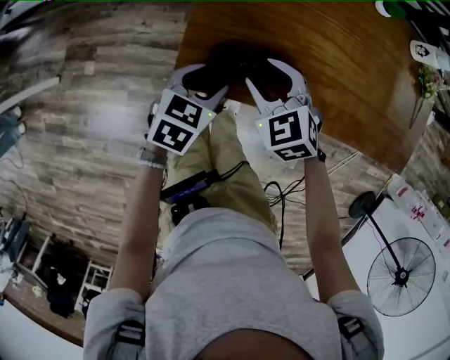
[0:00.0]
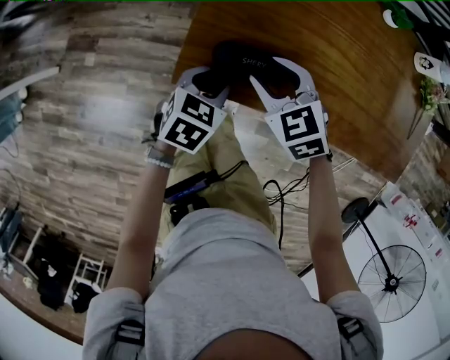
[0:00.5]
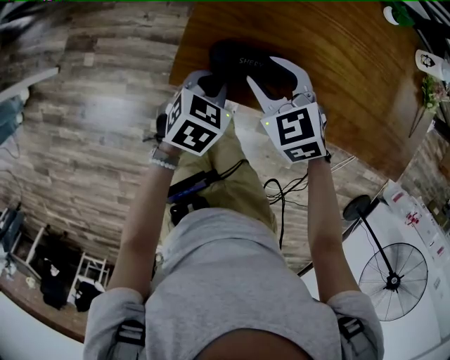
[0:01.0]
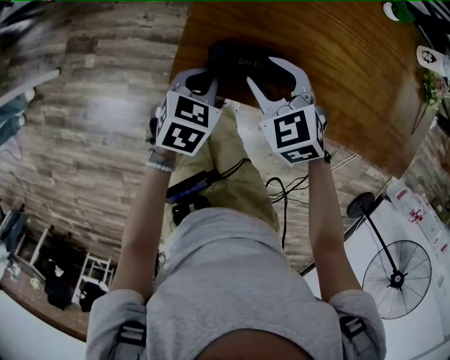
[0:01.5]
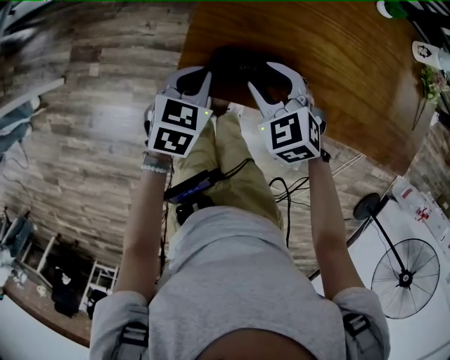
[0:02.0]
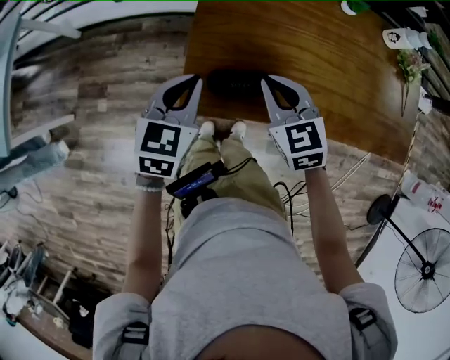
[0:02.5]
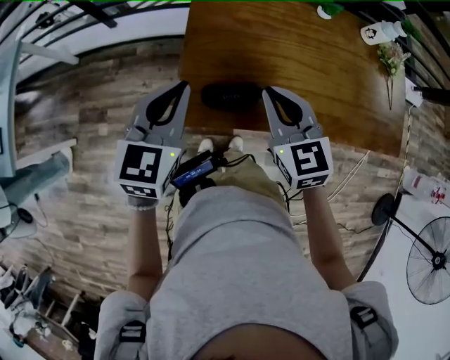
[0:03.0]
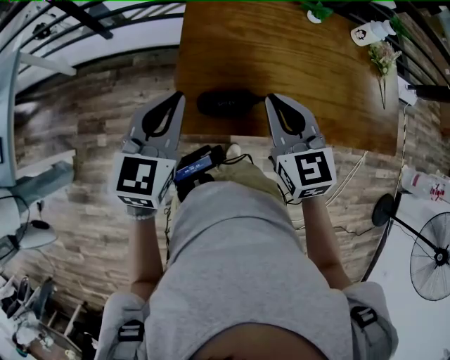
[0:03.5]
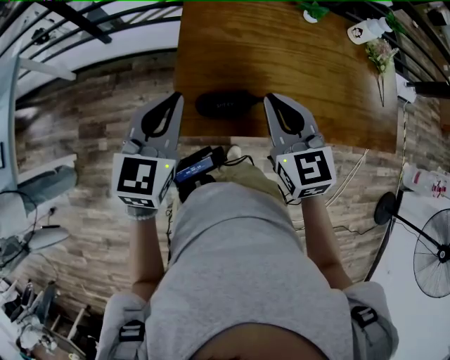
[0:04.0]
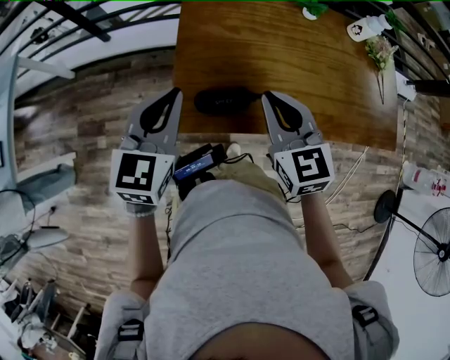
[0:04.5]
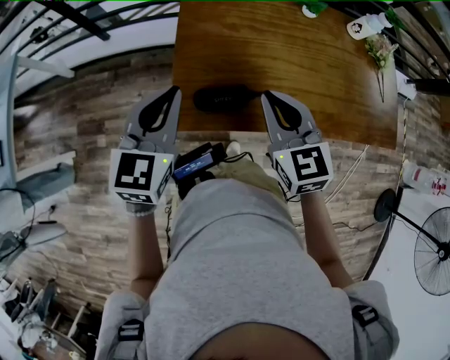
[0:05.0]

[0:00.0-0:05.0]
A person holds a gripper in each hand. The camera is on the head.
0:00.0 to 0:02.5: Both grippers move upward, about 10 cm. The right gripper swivels approximately 20 degrees, and closes its fingers, while the left gripper closes up.
0:02.5 to 0:05.0: The two grippers go roughly 10 cm upward.

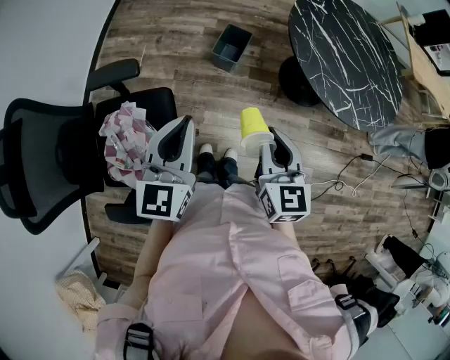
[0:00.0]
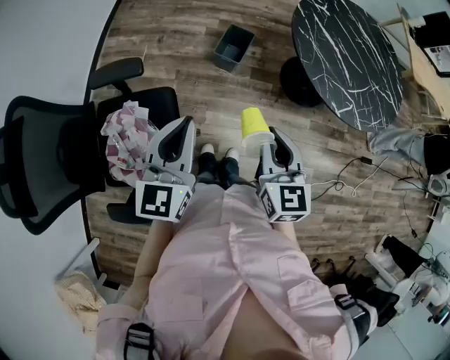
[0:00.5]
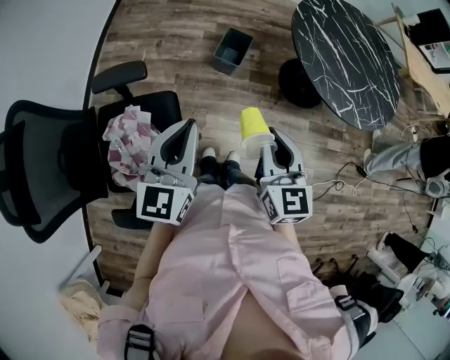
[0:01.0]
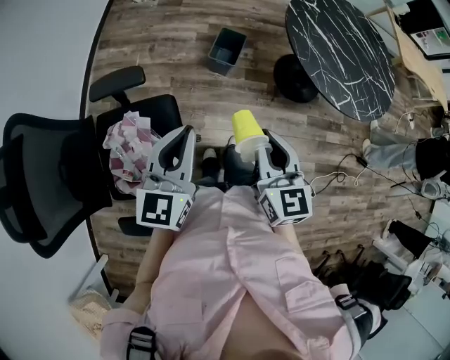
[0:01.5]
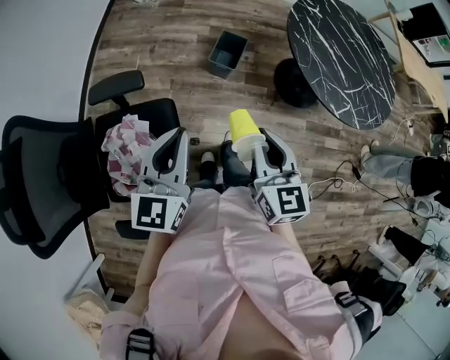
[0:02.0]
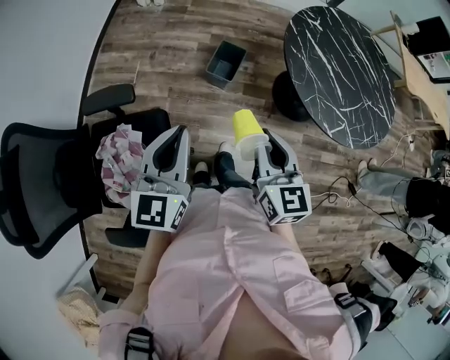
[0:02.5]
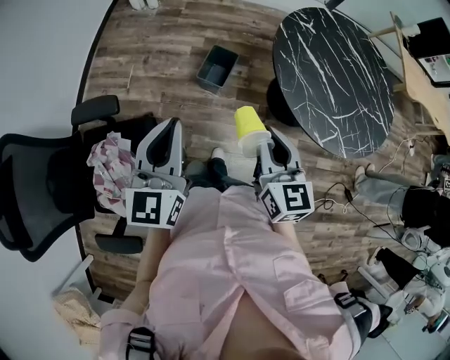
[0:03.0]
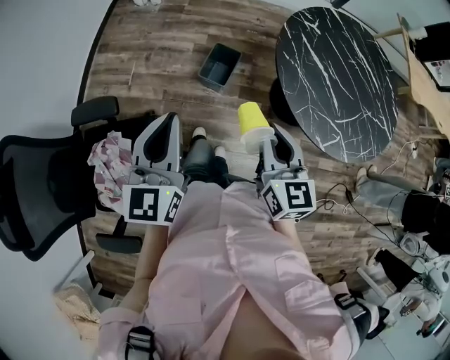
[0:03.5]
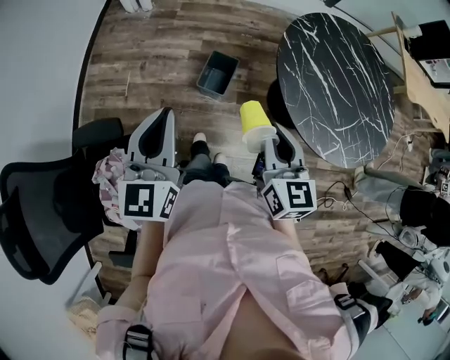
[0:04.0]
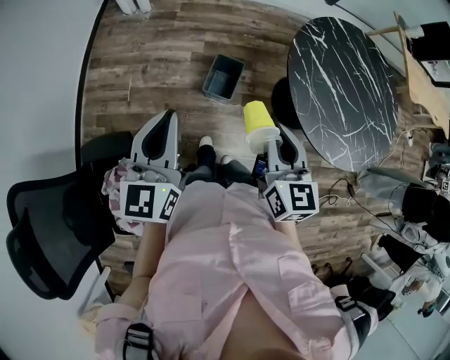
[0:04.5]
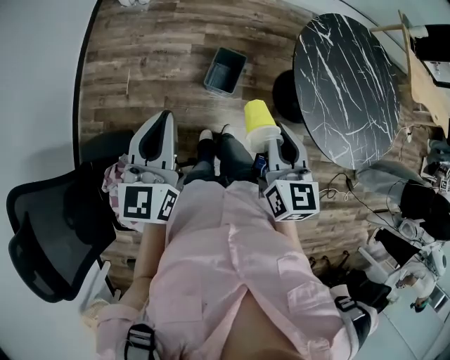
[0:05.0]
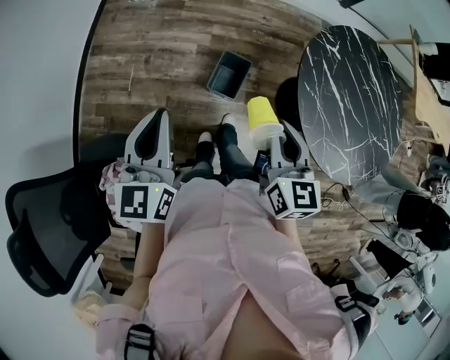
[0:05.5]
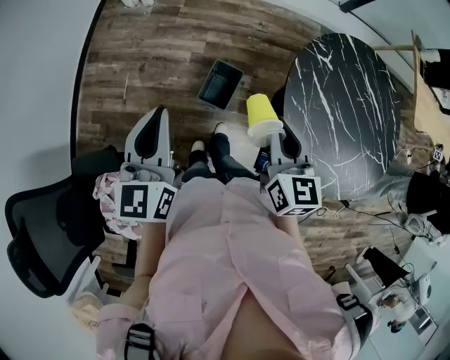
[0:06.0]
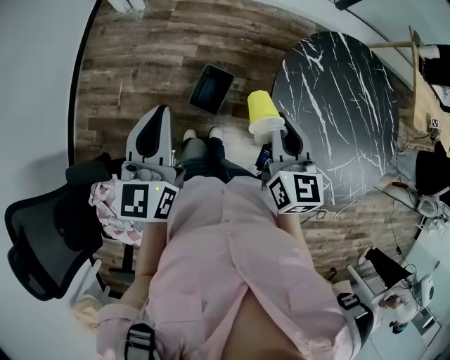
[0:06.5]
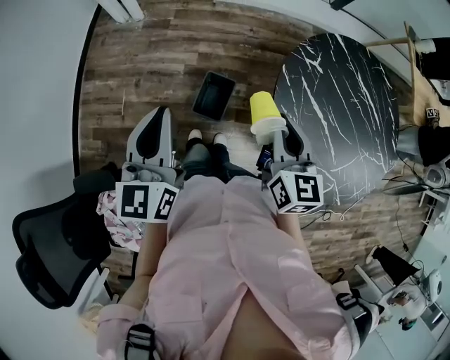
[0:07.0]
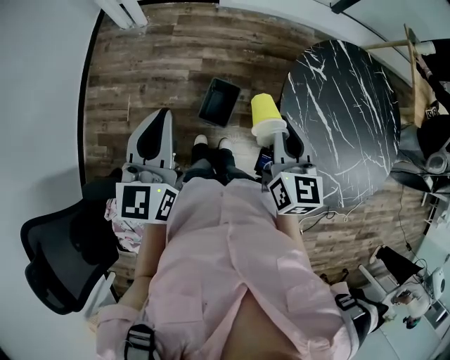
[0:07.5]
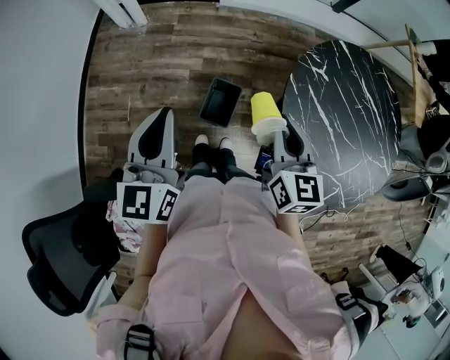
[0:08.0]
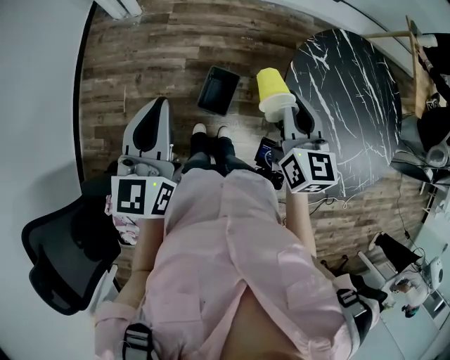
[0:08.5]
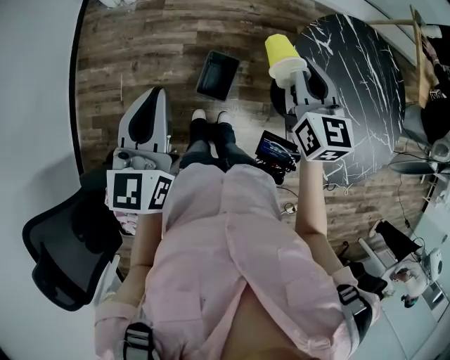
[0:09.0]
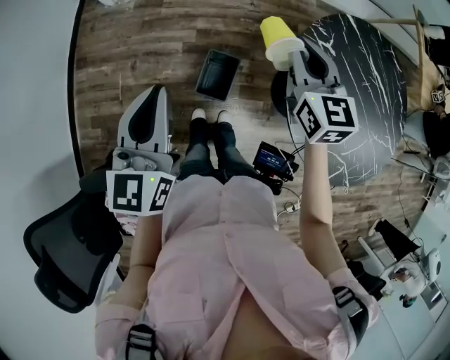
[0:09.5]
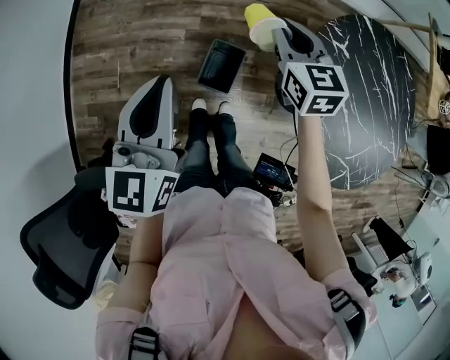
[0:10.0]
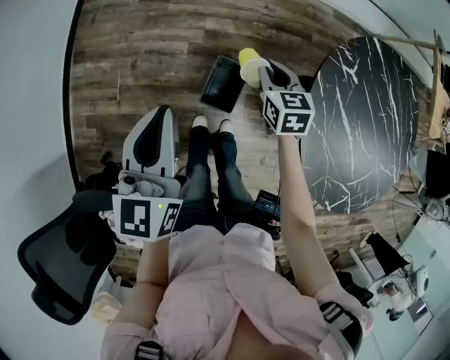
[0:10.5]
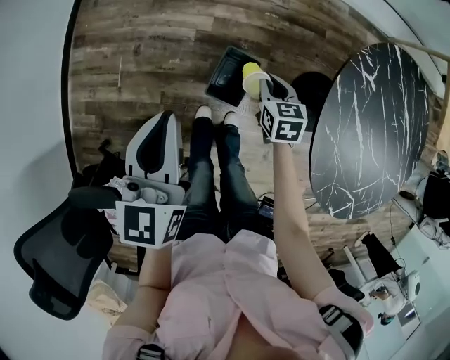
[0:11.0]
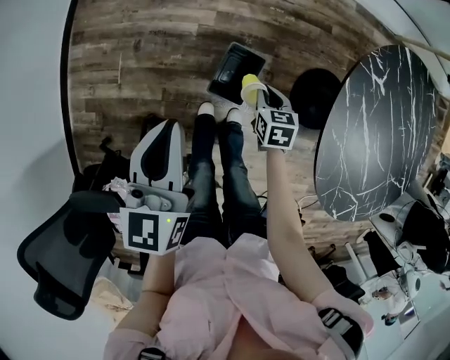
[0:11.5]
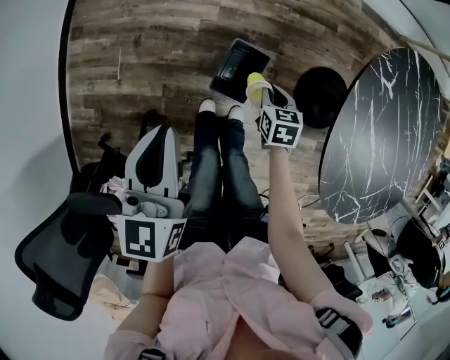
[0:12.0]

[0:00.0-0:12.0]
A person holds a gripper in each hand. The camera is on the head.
0:00.0 to 0:02.0: The two grippers go about 5 cm to the left.
0:02.0 to 0:04.0: The left gripper is displaced forward by about 20 cm, while the right gripper heads forward and to the right, covering some 20 cm.
0:04.0 to 0:06.0: Both grippers move forward, approximately 15 cm.
0:06.0 to 0:08.0: The grippers both shift forward by some 5 cm.
0:08.0 to 0:10.0: The right gripper travels forward by some 20 cm; the left gripper moves approximately 5 cm.
0:10.0 to 0:12.0: The left gripper heads downward, covering roughly 15 cm. The right gripper moves downward, about 35 cm, and swivels roughly 30 degrees.

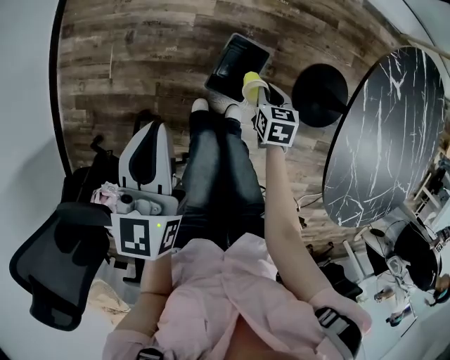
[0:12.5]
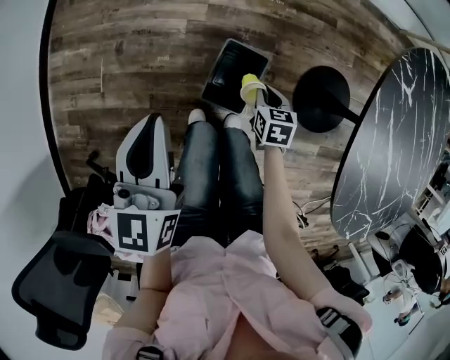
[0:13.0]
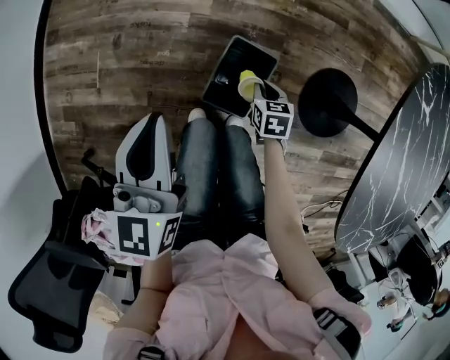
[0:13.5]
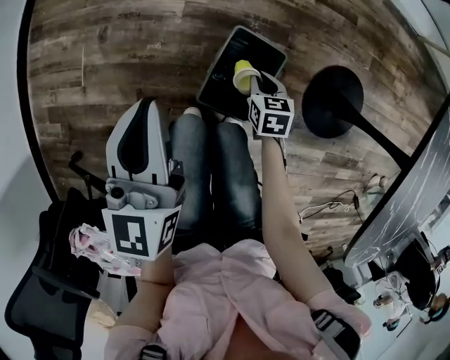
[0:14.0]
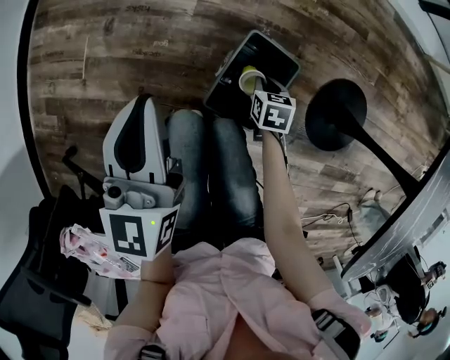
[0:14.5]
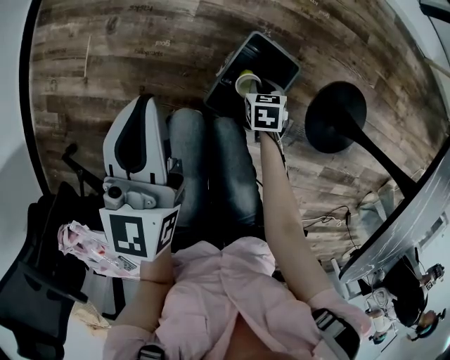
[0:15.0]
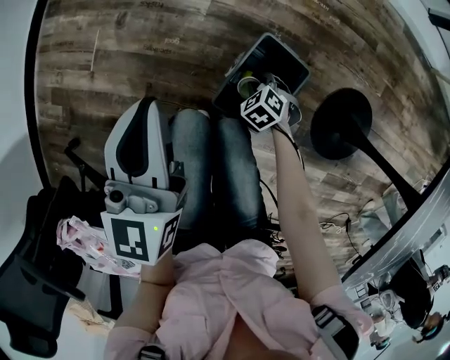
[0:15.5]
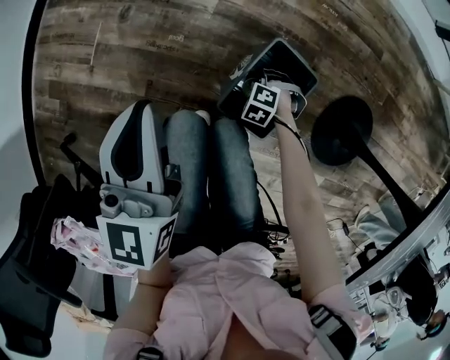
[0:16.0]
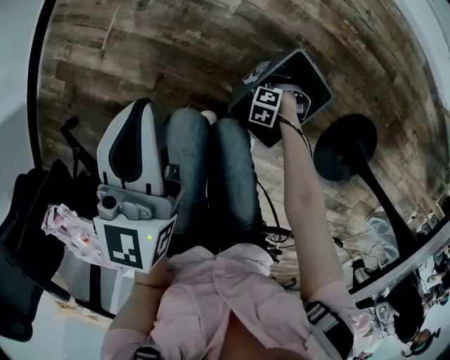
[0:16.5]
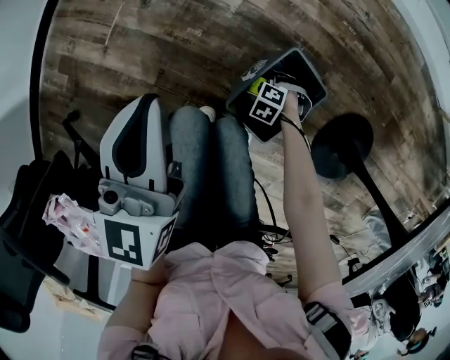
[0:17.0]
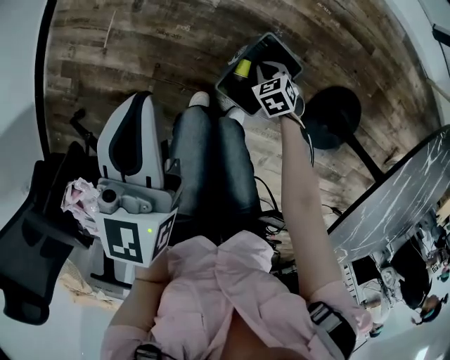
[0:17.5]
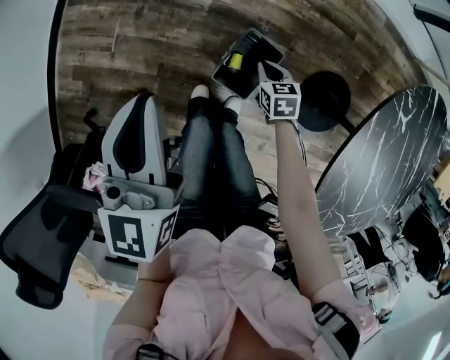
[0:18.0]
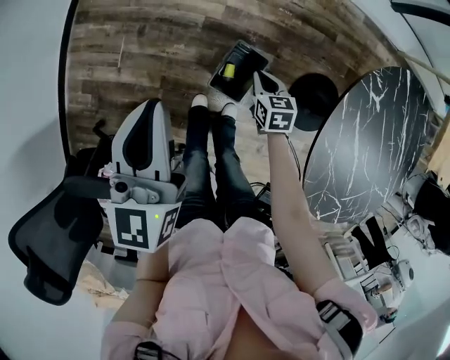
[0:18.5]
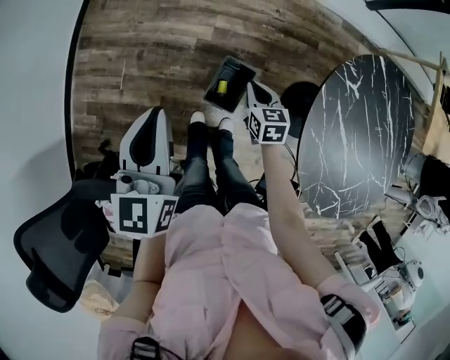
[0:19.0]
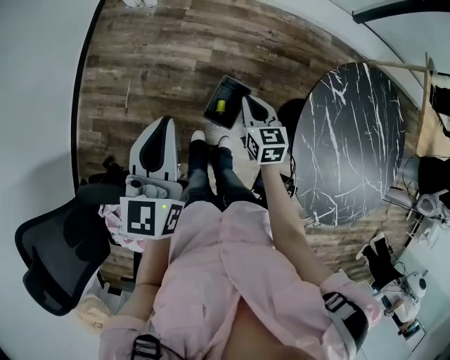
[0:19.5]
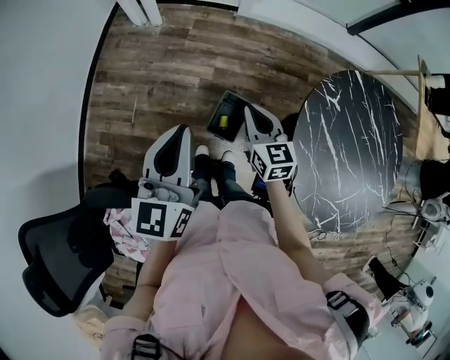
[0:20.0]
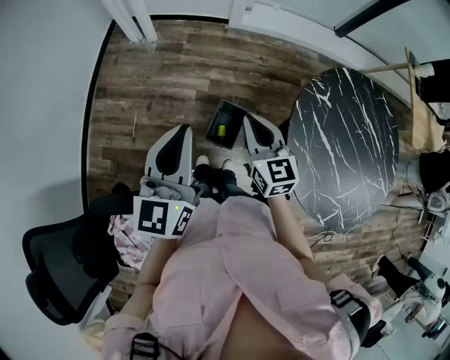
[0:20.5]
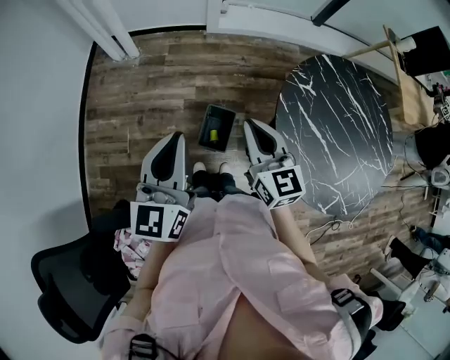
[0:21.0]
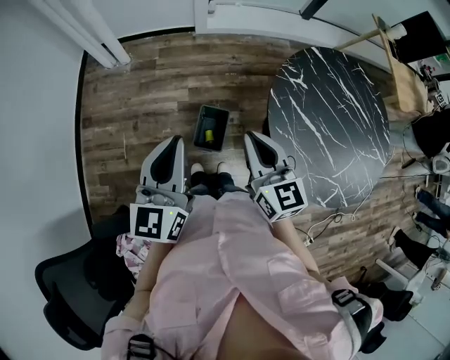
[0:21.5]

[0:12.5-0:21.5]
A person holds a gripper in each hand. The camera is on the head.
0:12.5 to 0:14.5: The right gripper moves downward, about 25 cm. The left gripper moves downward and forward, approximately 25 cm.
0:14.5 to 0:17.0: The right gripper goes some 10 cm downward, twists roughly 90 degrees counterclockwise, seen from behind, and opens its fingers.
0:17.0 to 0:19.5: The right gripper moves upward, about 60 cm, tilts its fingers roughly 50 degrees upward, and closes; the left gripper travels upward by some 40 cm.
0:19.5 to 0:21.5: The left gripper travels to the right by approximately 10 cm, while the right gripper goes approximately 25 cm upward and backward, and rotates approximately 20 degrees.

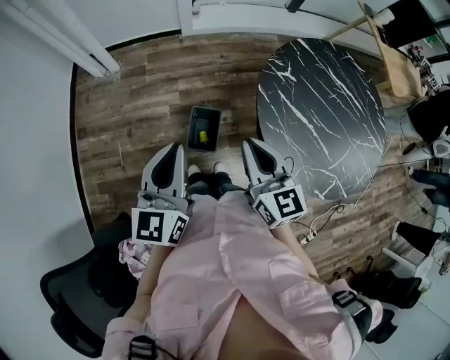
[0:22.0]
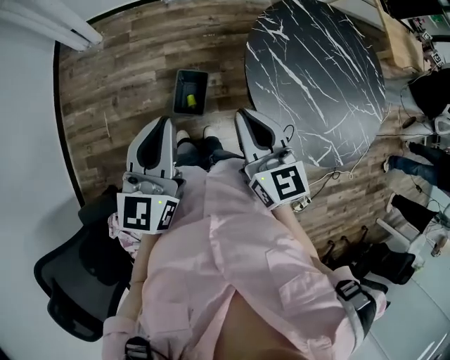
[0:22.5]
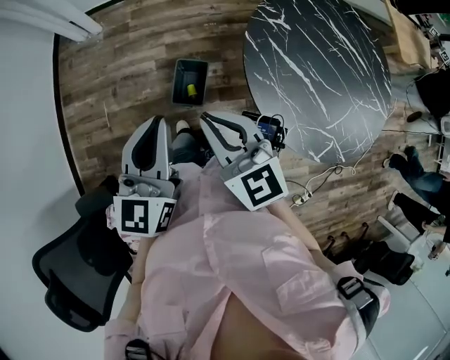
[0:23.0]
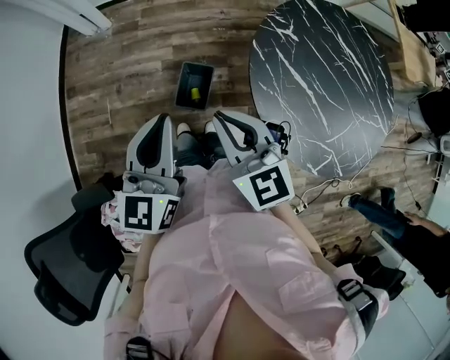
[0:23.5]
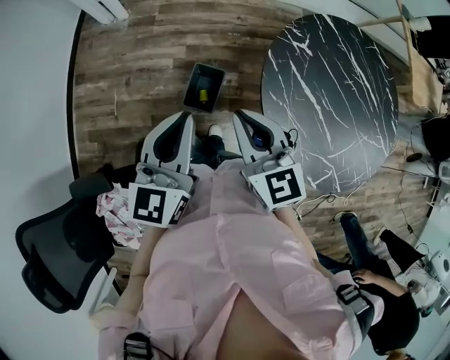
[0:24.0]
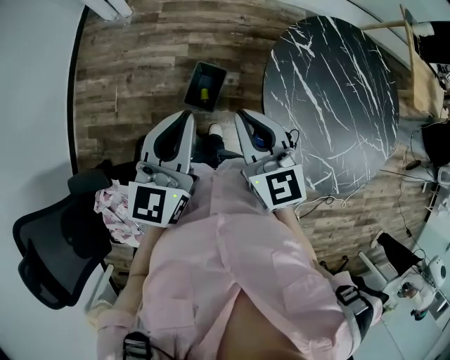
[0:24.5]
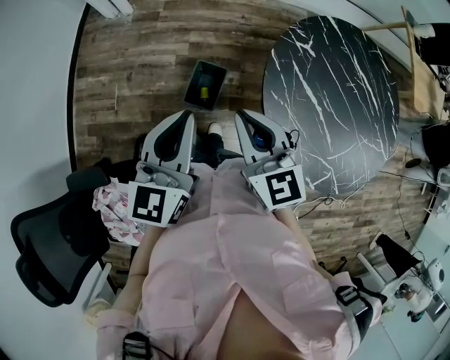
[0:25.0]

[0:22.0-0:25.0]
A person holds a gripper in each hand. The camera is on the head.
0:22.0 to 0:23.5: The left gripper moves about 5 cm; the right gripper rotates some 20 degrees.
0:23.5 to 0:25.0: The grippers stay close to where they were, moving slightly.
